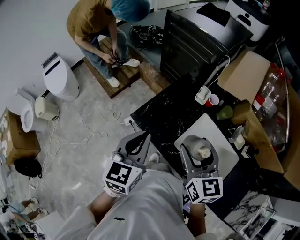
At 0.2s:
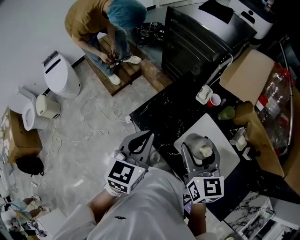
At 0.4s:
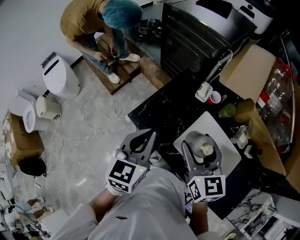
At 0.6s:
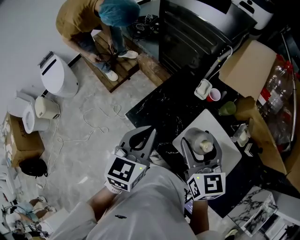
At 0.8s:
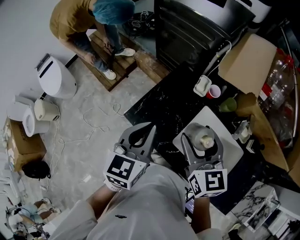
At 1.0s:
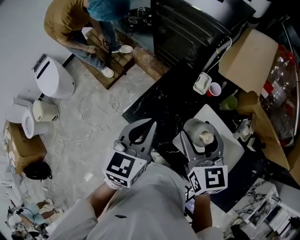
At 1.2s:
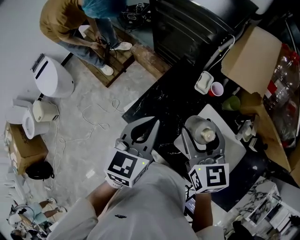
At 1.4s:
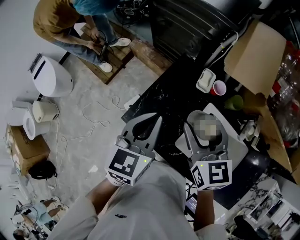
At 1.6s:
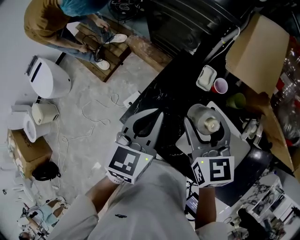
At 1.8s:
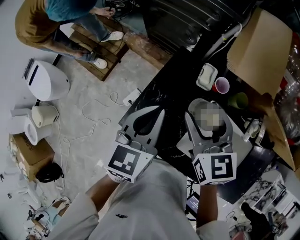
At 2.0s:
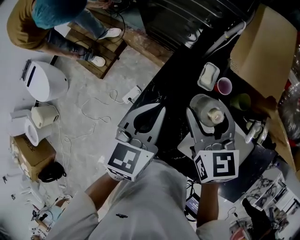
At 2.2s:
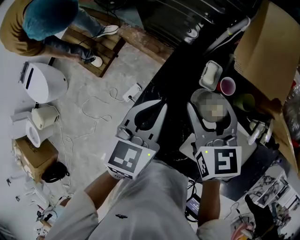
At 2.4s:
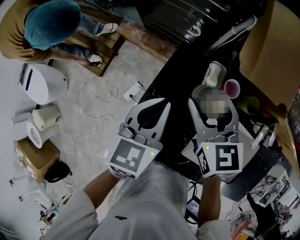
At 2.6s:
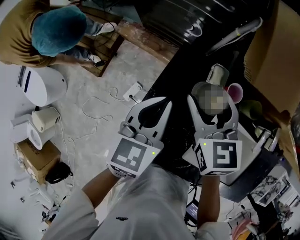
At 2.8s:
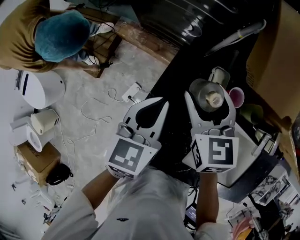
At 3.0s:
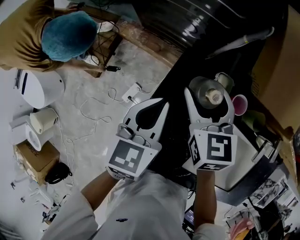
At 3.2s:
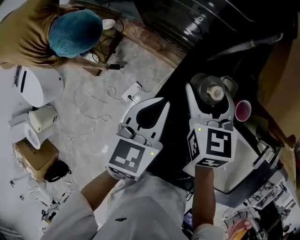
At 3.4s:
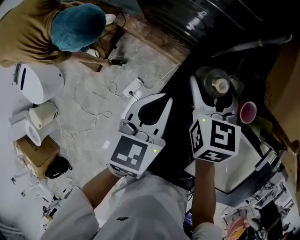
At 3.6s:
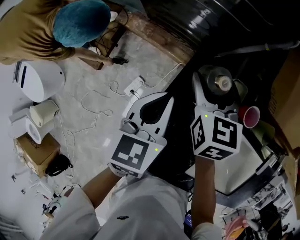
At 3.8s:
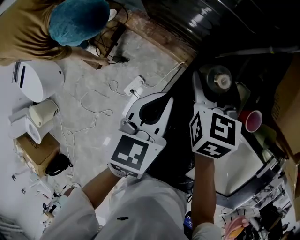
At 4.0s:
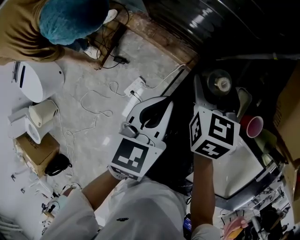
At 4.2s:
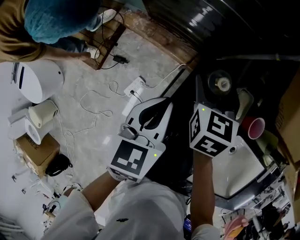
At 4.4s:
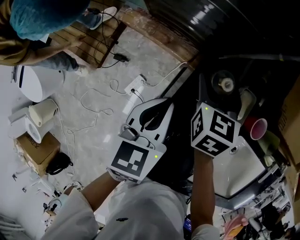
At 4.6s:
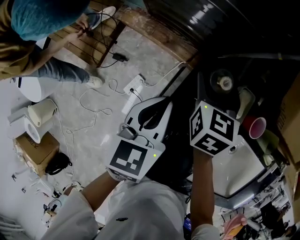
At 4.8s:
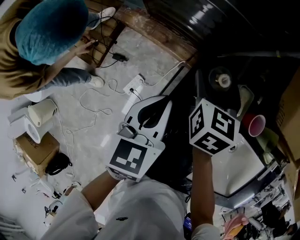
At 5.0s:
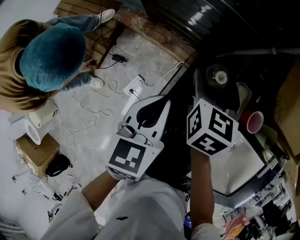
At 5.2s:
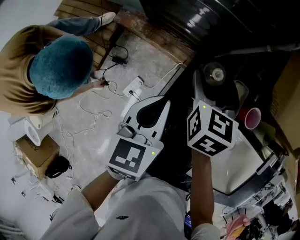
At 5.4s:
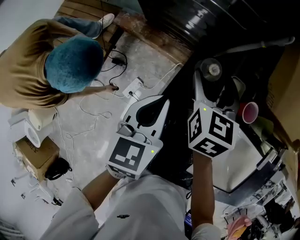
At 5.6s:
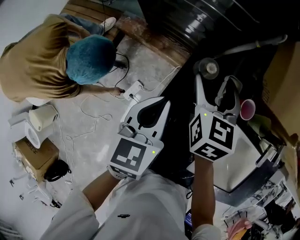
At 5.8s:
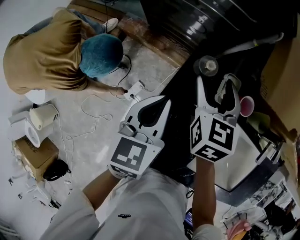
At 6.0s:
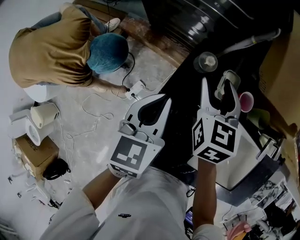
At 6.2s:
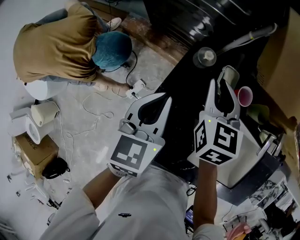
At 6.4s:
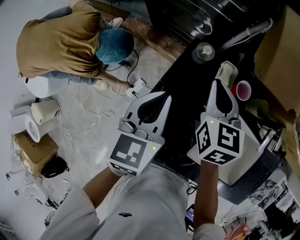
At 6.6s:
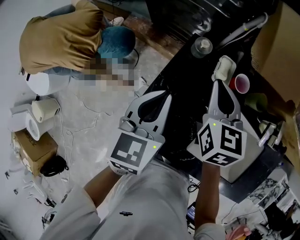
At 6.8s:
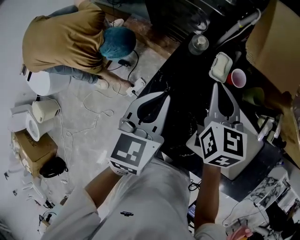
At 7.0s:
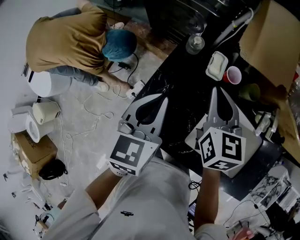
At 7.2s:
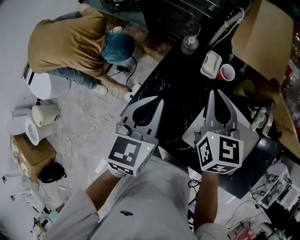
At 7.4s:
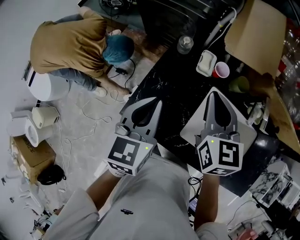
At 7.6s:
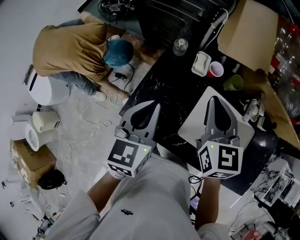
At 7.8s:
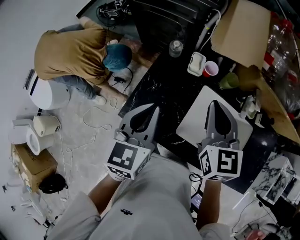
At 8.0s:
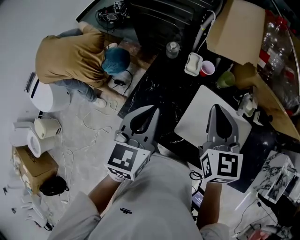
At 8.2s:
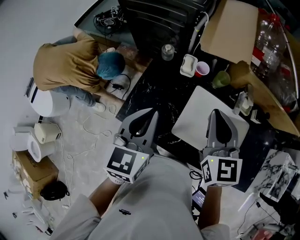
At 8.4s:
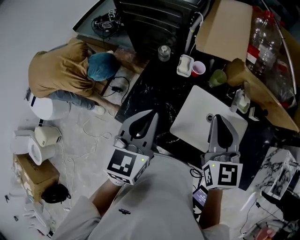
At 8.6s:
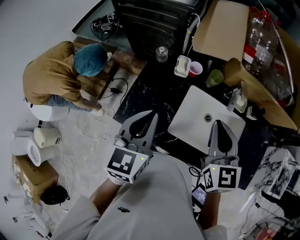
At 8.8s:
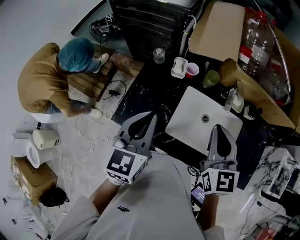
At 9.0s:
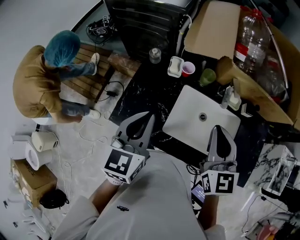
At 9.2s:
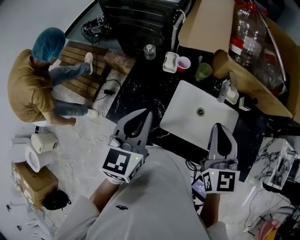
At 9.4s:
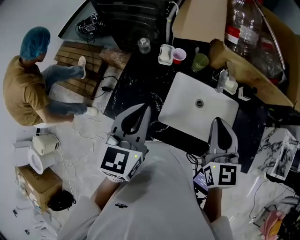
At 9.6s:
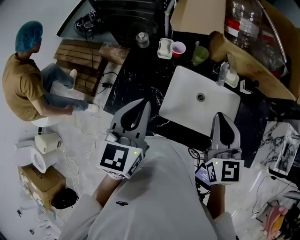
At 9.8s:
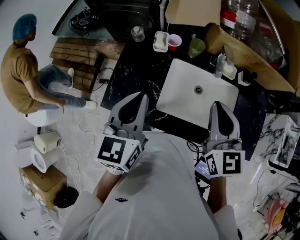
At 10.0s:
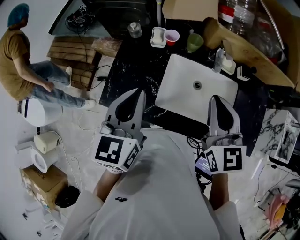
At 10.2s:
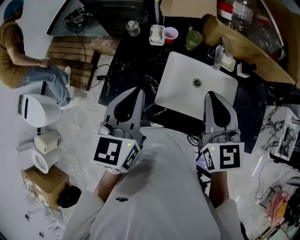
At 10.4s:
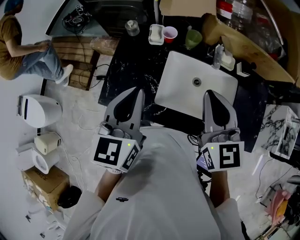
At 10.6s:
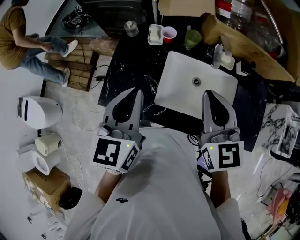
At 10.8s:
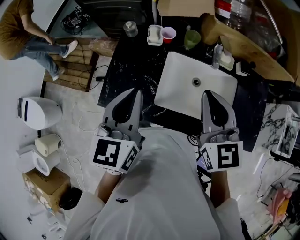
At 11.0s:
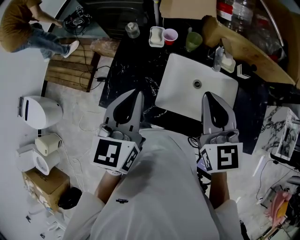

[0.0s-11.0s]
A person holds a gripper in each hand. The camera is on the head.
0.0s to 1.6s: Both grippers travel together forward, some 20 cm.
1.6s to 3.2s: Both grippers travel together forward and downward, about 25 cm.
3.2s to 4.8s: The left gripper is displaced downward by some 5 cm. Meanwhile the right gripper is displaced downward and forward by some 10 cm.
4.8s to 6.2s: Both grippers move upward and backward, roughly 15 cm. The right gripper closes up.
6.2s to 7.8s: The grippers both shift backward, upward and to the right by some 25 cm.
7.8s to 9.4s: The left gripper shifts some 10 cm to the right and upward. Meanwhile the right gripper shifts roughly 20 cm to the right and backward.
9.4s to 11.0s: There are only small adjustments of the grippers.

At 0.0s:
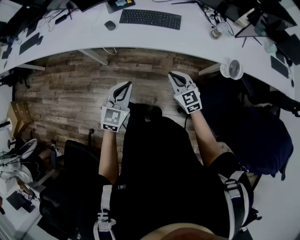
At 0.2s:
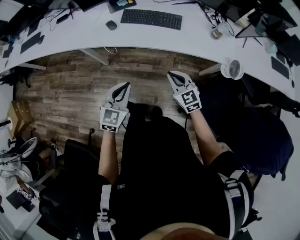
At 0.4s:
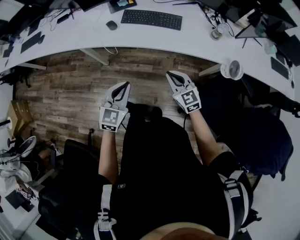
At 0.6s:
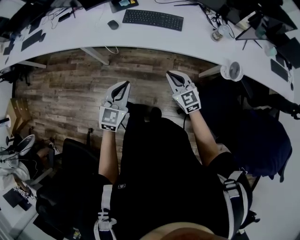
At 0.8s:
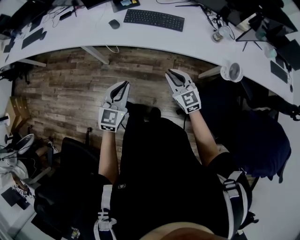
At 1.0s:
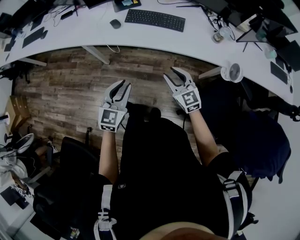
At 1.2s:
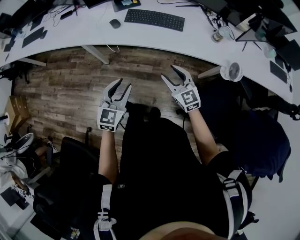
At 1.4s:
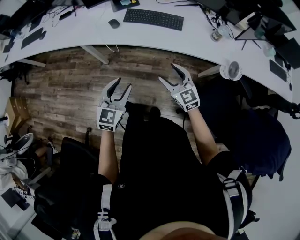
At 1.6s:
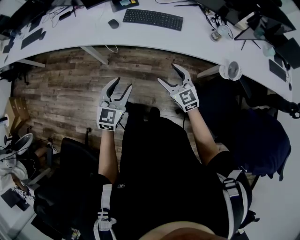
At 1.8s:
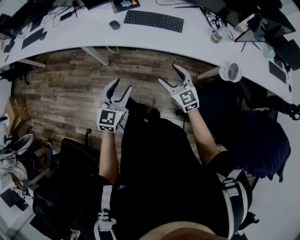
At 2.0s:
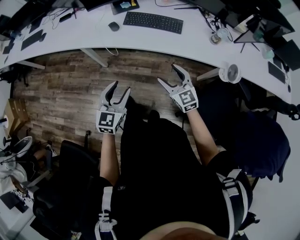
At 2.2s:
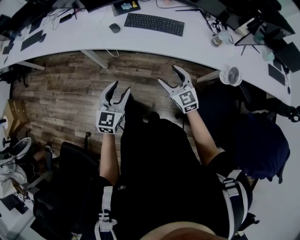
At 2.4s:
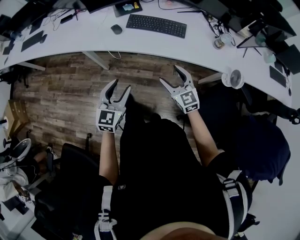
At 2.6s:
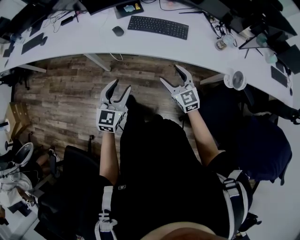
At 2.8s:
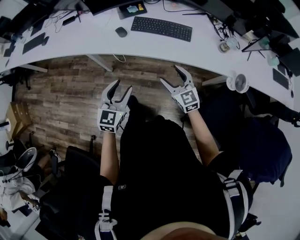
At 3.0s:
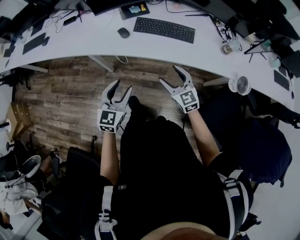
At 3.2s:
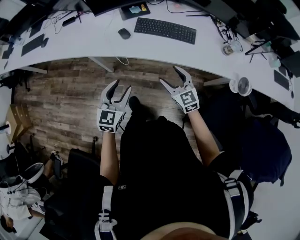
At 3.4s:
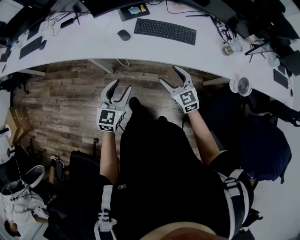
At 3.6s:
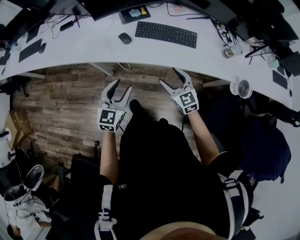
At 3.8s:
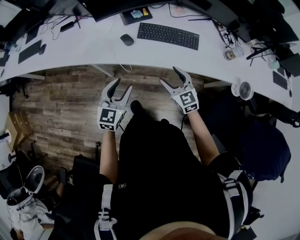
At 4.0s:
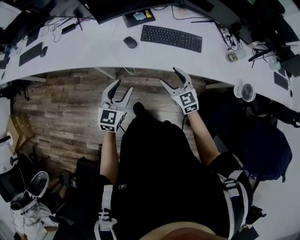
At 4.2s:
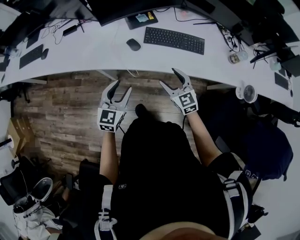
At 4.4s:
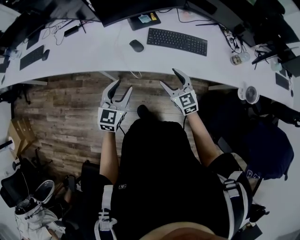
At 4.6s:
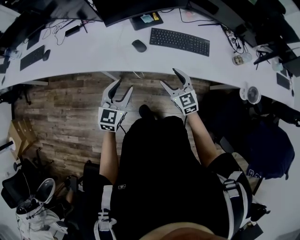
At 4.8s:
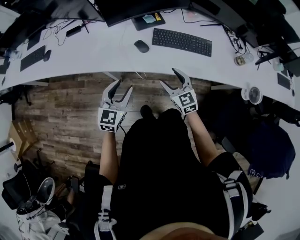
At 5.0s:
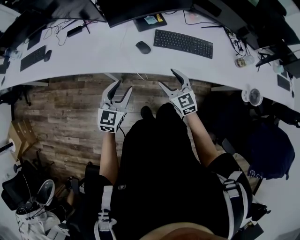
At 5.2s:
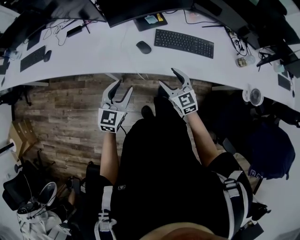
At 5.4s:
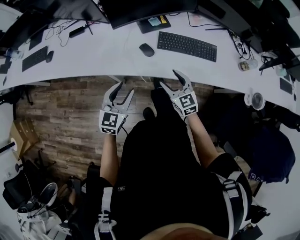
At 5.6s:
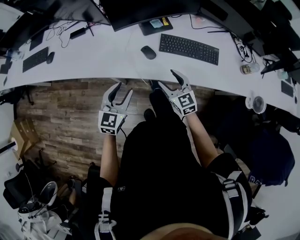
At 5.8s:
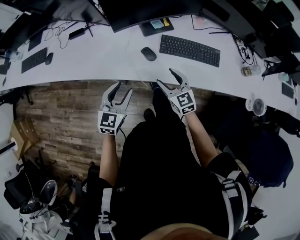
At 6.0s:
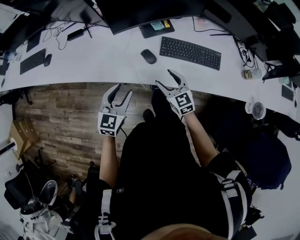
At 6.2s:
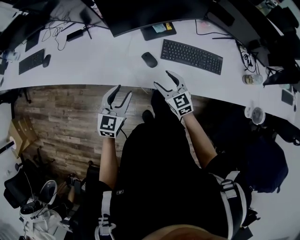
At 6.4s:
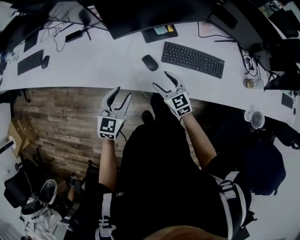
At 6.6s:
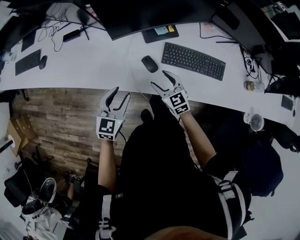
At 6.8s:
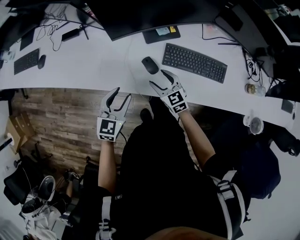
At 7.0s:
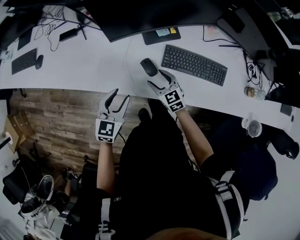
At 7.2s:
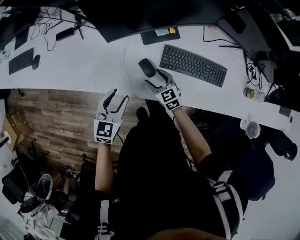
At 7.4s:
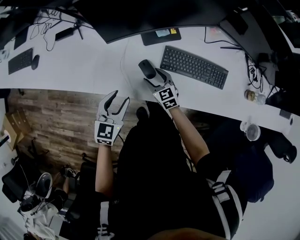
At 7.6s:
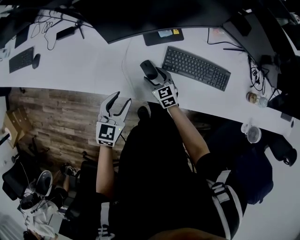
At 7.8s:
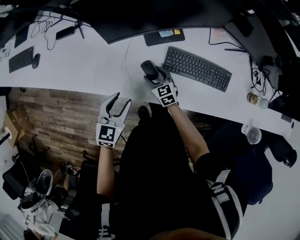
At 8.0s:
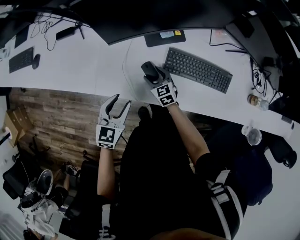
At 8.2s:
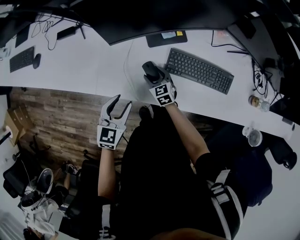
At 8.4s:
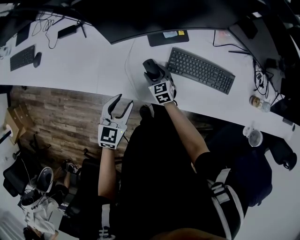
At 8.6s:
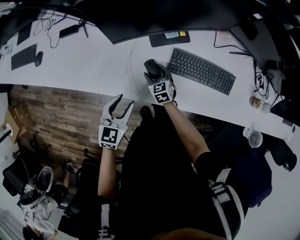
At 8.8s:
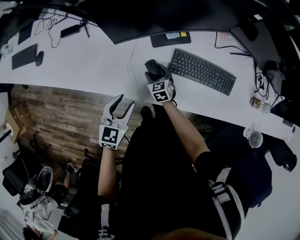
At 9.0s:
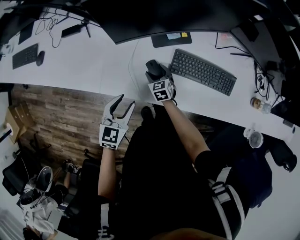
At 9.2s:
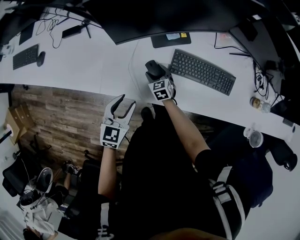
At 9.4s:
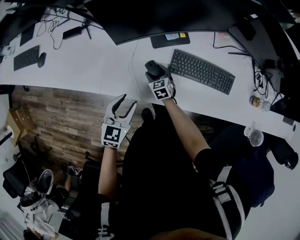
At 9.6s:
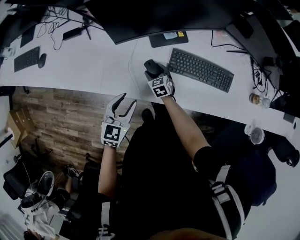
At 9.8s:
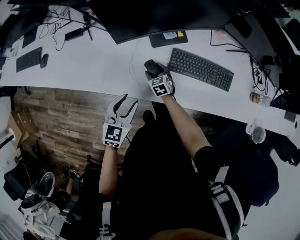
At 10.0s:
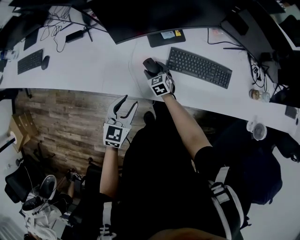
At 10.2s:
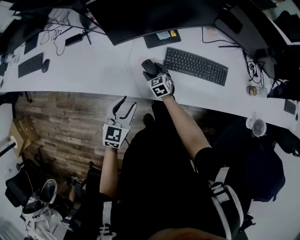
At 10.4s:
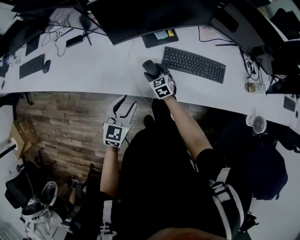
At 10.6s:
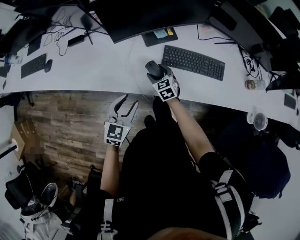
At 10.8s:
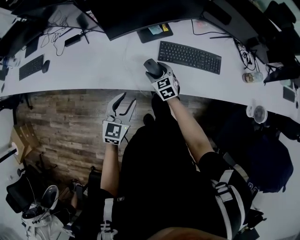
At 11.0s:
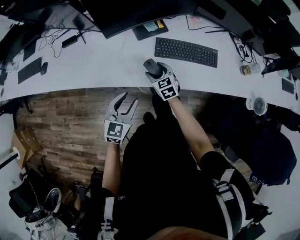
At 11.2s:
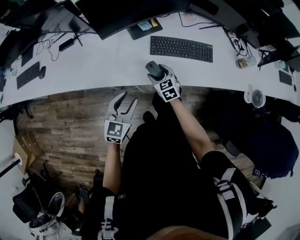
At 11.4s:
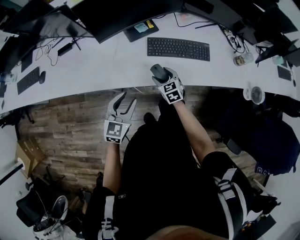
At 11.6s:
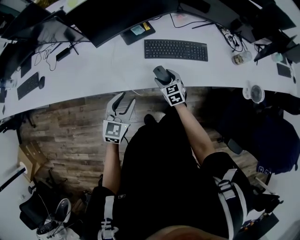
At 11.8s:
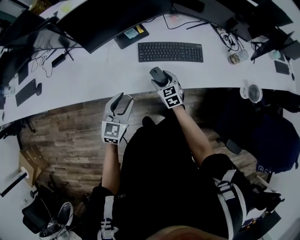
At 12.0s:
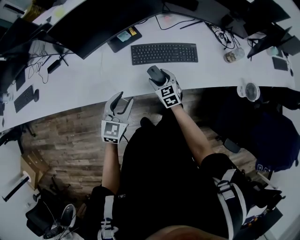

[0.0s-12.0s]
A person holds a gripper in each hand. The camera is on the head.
0.0s to 1.6s: The right gripper opens its fingers, while the left gripper opens.
1.6s to 3.0s: Both grippers travel together forward and to the left, about 10 cm.
3.0s to 4.4s: The left gripper travels forward and to the left by some 15 cm. The right gripper goes about 15 cm to the left and forward.
4.4s to 6.0s: The grippers both shift forward and to the left by some 10 cm.
6.0s to 7.6s: The left gripper moves forward and downward, about 10 cm. The right gripper moves downward and forward, some 20 cm.
7.6s to 9.0s: The right gripper ends up roughly 5 cm from where it was.
9.0s to 10.4s: The left gripper is displaced backward by roughly 5 cm, while the right gripper travels upward by some 5 cm.
10.4s to 12.0s: The left gripper heads to the right, covering approximately 10 cm. Meanwhile the right gripper travels to the right and backward by roughly 20 cm.

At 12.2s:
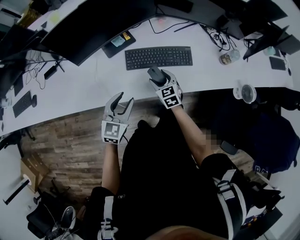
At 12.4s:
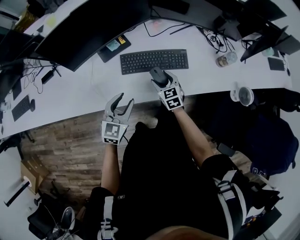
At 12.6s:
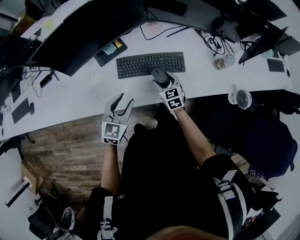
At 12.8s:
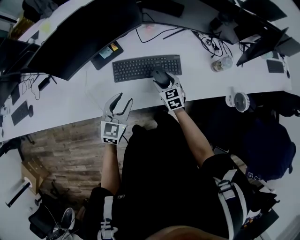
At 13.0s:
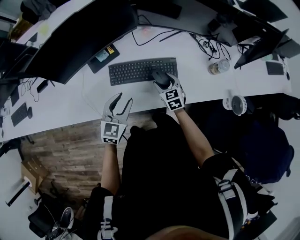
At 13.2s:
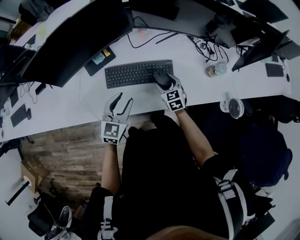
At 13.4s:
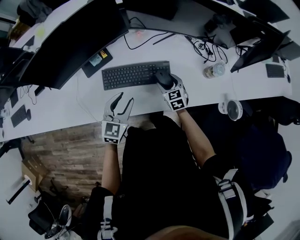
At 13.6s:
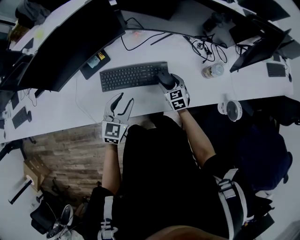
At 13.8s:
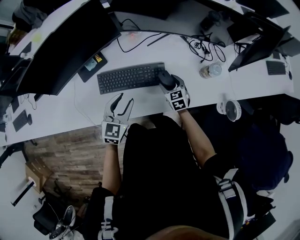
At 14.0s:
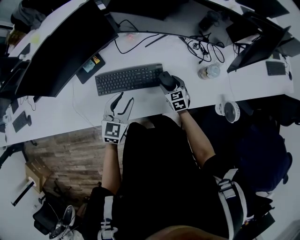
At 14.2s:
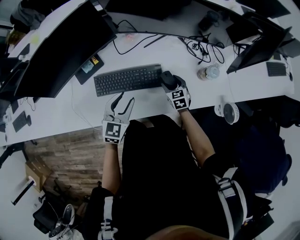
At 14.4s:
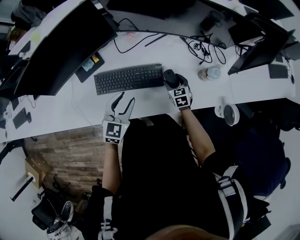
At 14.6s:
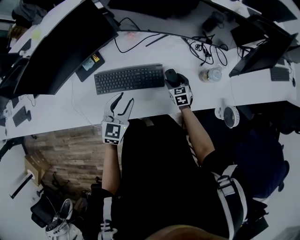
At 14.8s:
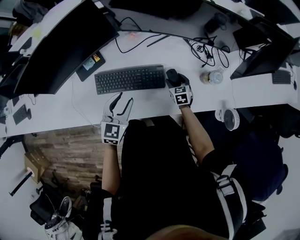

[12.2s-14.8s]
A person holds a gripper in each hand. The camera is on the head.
12.2s to 13.4s: Both grippers travel together to the right and forward, approximately 20 cm.
13.4s to 14.8s: The left gripper shifts roughly 5 cm to the right, while the right gripper travels to the right, downward and forward by roughly 15 cm.
